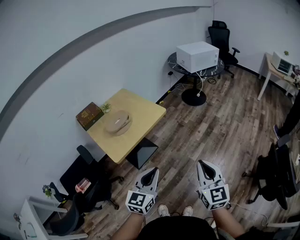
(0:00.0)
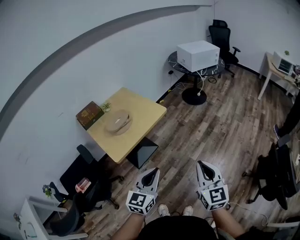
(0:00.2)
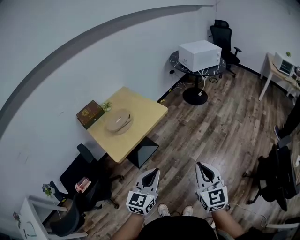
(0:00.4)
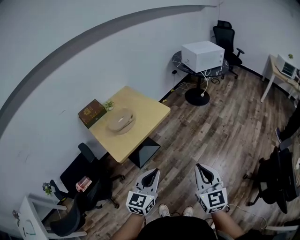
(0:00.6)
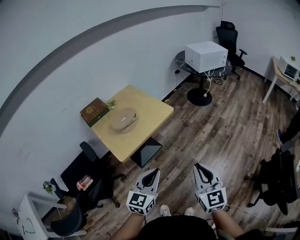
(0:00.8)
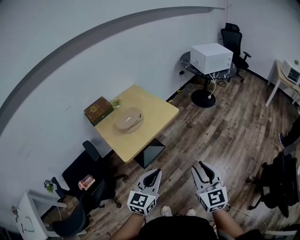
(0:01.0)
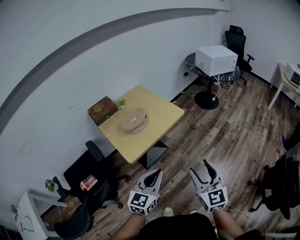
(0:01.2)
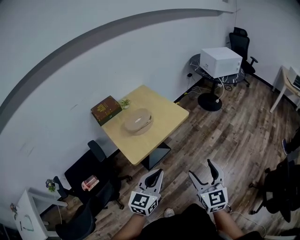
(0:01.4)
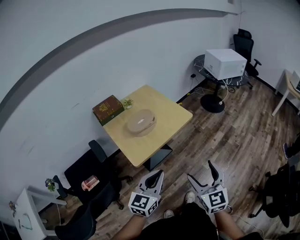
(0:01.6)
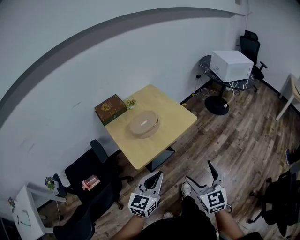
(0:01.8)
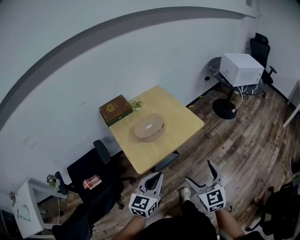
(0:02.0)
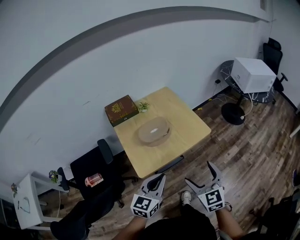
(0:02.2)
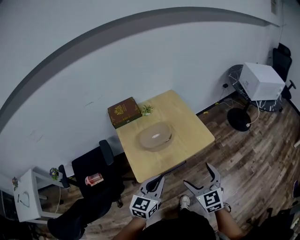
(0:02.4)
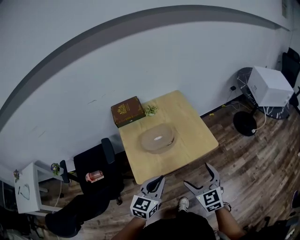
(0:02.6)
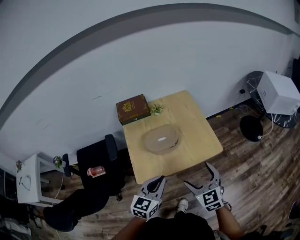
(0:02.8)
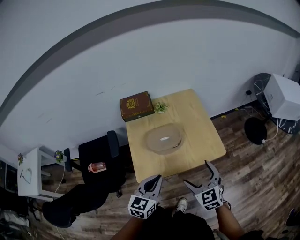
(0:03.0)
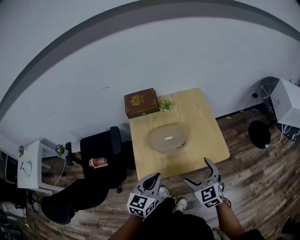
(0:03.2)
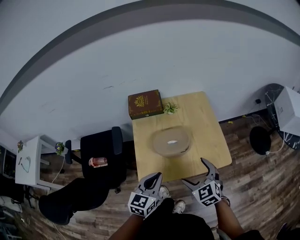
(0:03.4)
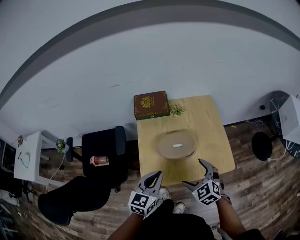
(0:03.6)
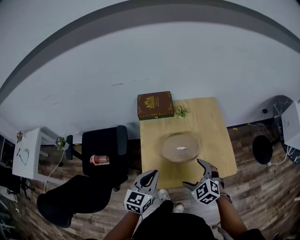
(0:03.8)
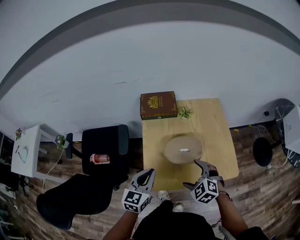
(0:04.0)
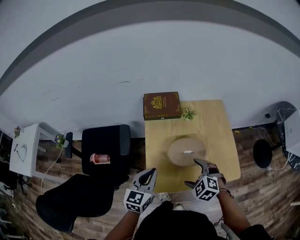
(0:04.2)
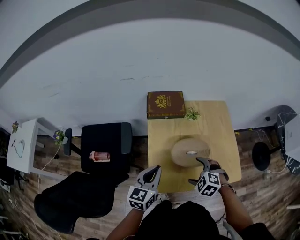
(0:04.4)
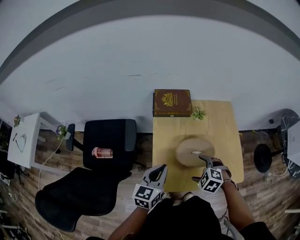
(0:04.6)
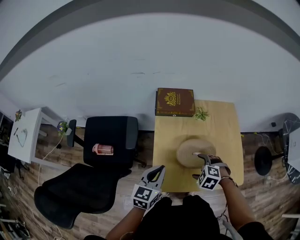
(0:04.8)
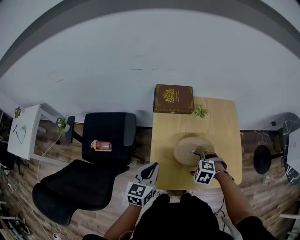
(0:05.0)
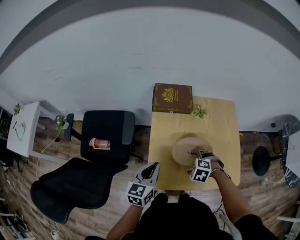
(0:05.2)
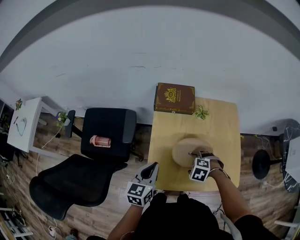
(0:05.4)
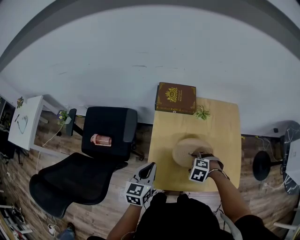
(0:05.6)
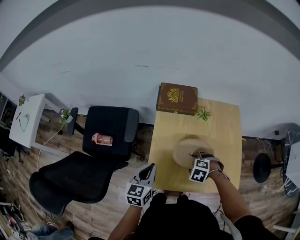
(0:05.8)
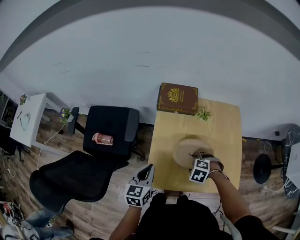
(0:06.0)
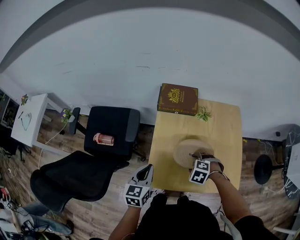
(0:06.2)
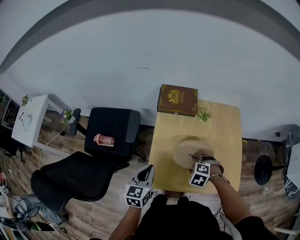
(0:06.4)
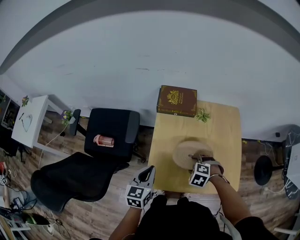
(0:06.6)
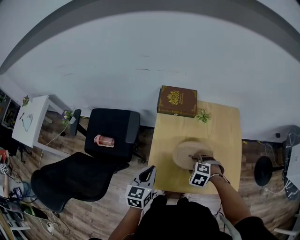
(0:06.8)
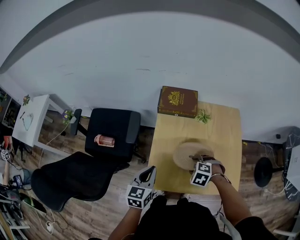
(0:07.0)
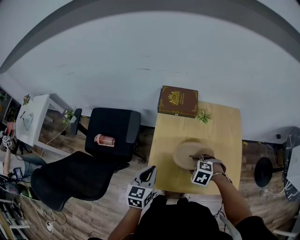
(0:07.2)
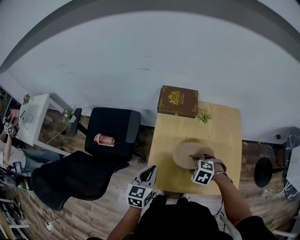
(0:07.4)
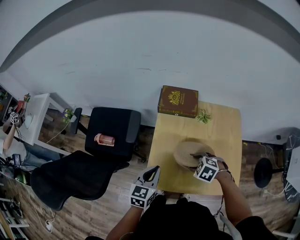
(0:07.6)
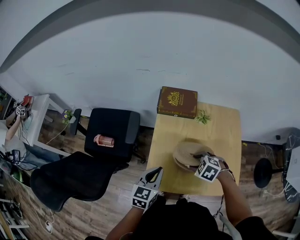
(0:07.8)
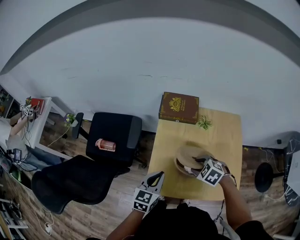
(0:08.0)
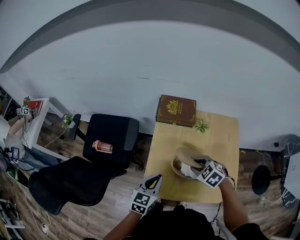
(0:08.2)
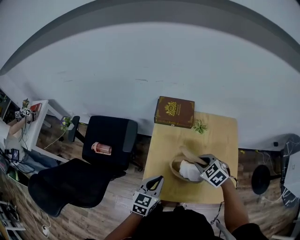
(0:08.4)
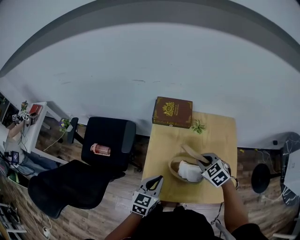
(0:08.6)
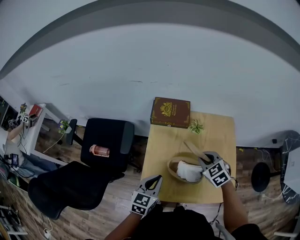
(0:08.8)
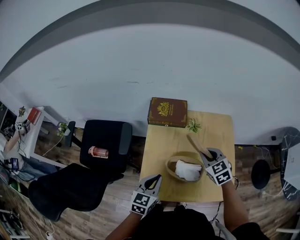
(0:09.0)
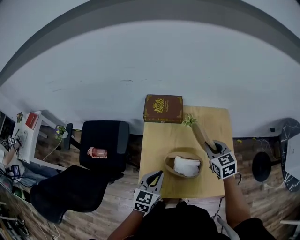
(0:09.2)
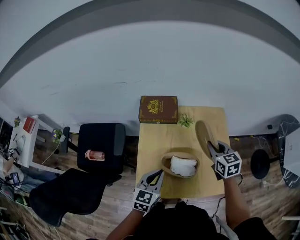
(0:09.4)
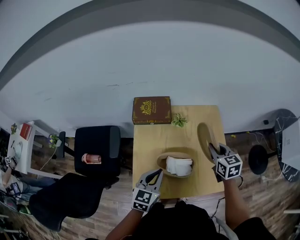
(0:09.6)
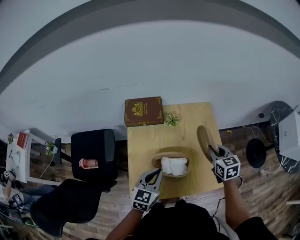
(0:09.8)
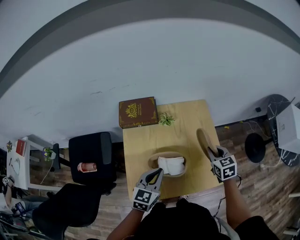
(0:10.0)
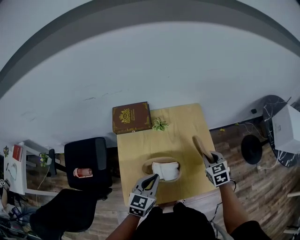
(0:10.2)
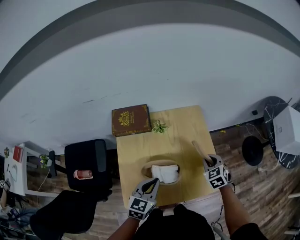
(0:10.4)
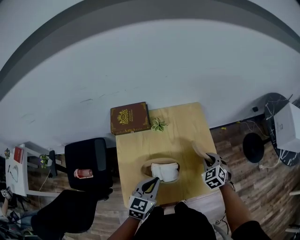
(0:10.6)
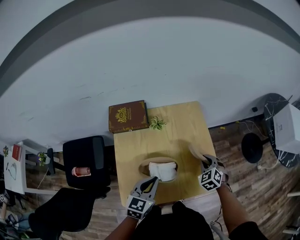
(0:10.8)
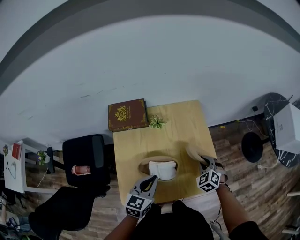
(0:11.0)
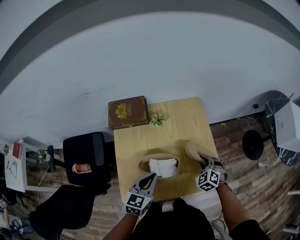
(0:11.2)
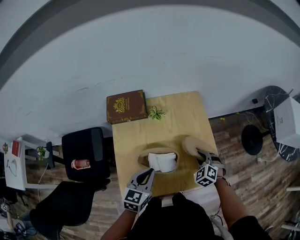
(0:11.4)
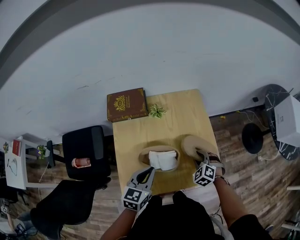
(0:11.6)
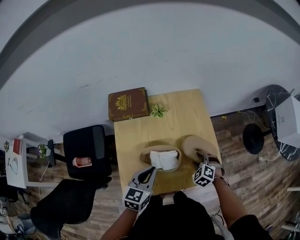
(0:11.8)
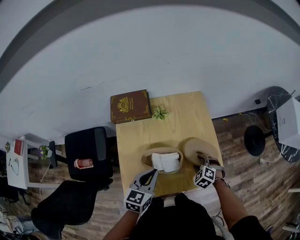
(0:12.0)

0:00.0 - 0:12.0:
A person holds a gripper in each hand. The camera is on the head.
0:00.0 - 0:01.6: The grippers both shift to the left by about 15 cm. The right gripper opens.
0:01.6 - 0:03.0: The right gripper shifts by about 30 cm, and rotates some 40 degrees. Meanwhile the left gripper shifts by roughly 20 cm, and changes its angle by approximately 30 degrees.
0:03.0 - 0:04.4: The left gripper goes some 20 cm forward and to the left. Meanwhile the right gripper shifts about 20 cm forward, to the left and downward, and tilts its fingers roughly 40 degrees downward.
0:04.4 - 0:06.0: The right gripper heads downward, covering some 5 cm, and turns by about 20 degrees; the left gripper changes place by some 5 cm.
0:06.0 - 0:07.6: The grippers make only small movements.
0:07.6 - 0:09.0: The right gripper moves to the right, upward and forward, some 15 cm, angles its fingers upward, by approximately 30 degrees, and closes up.
0:09.0 - 0:10.4: The right gripper heads to the right, covering about 20 cm, and turns by roughly 20 degrees. The left gripper goes approximately 10 cm to the right.
0:10.4 - 0:12.0: The right gripper is displaced downward and backward by approximately 15 cm, and swivels approximately 30 degrees.

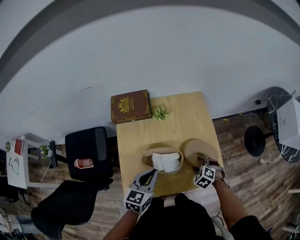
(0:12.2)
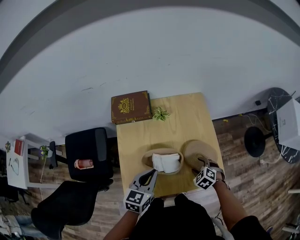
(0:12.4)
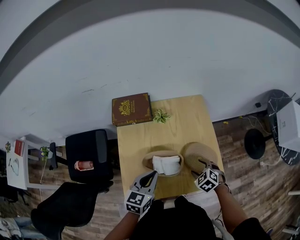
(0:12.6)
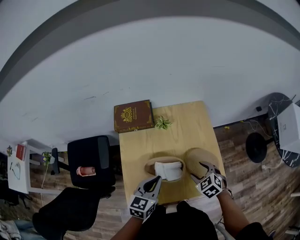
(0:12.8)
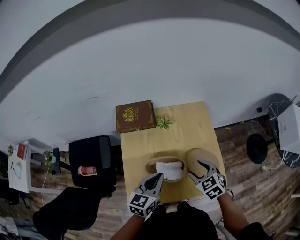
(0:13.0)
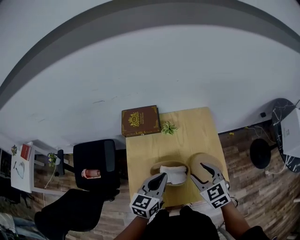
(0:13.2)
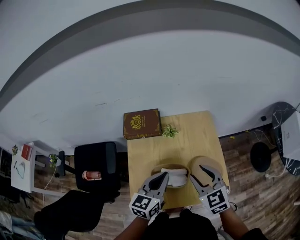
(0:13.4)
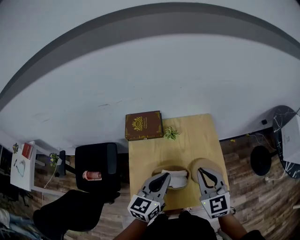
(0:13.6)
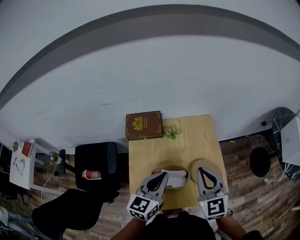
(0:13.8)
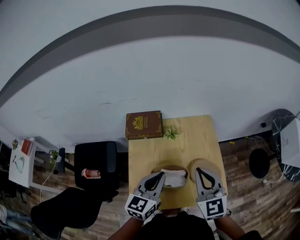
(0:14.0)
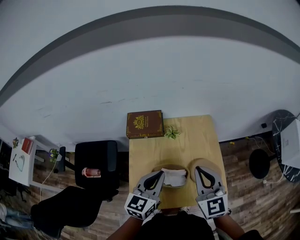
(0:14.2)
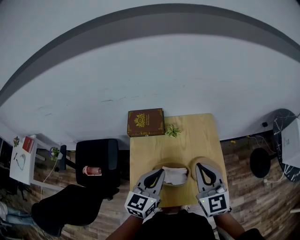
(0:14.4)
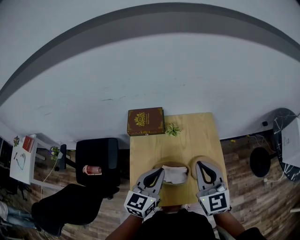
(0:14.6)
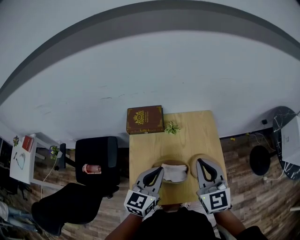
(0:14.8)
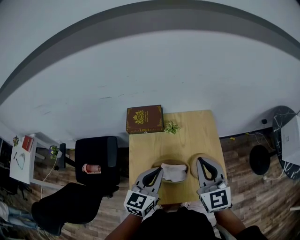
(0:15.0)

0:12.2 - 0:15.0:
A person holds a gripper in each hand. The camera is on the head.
0:12.2 - 0:13.6: The right gripper goes roughly 30 cm upward, points its fingers roughly 50 degrees further upward, and closes, while the left gripper shifts approximately 10 cm upward.
0:13.6 - 0:15.0: The right gripper ends up approximately 5 cm from where it was.

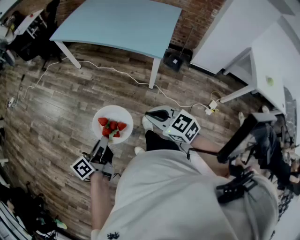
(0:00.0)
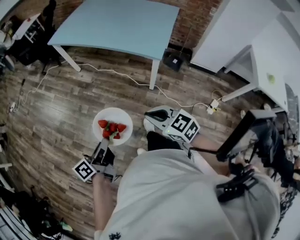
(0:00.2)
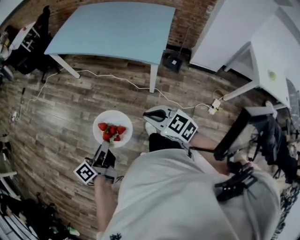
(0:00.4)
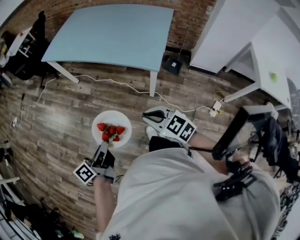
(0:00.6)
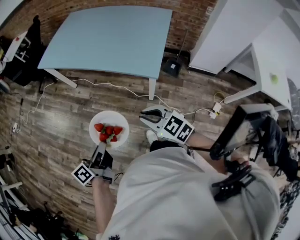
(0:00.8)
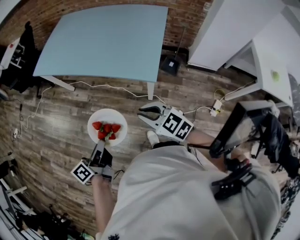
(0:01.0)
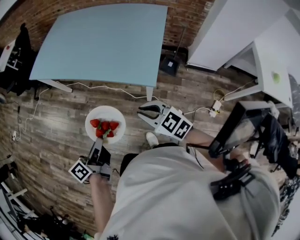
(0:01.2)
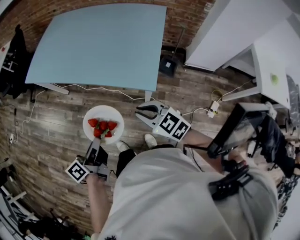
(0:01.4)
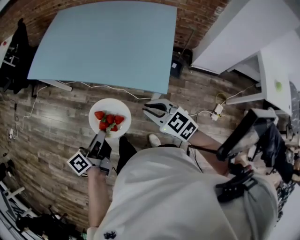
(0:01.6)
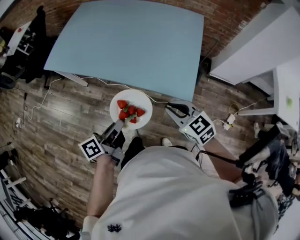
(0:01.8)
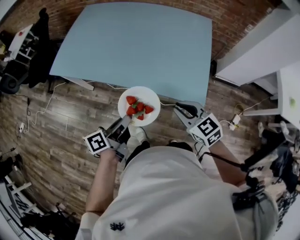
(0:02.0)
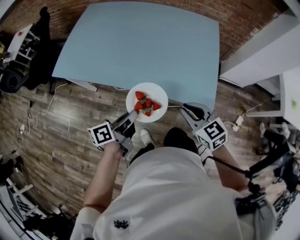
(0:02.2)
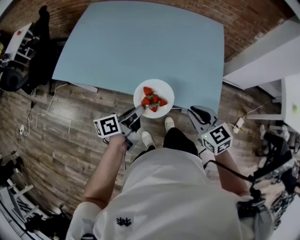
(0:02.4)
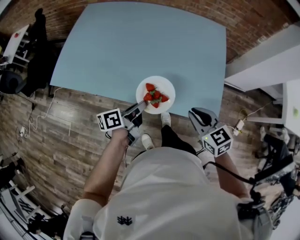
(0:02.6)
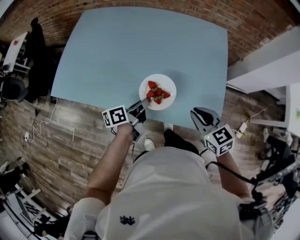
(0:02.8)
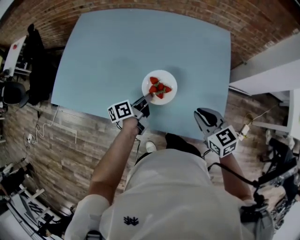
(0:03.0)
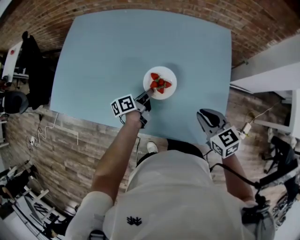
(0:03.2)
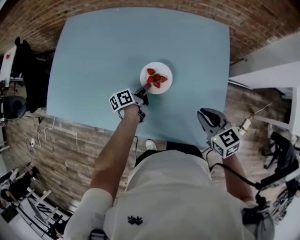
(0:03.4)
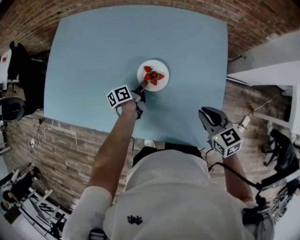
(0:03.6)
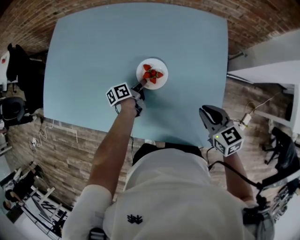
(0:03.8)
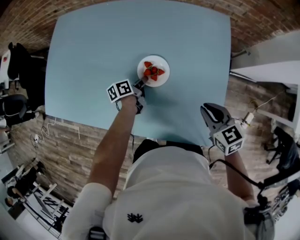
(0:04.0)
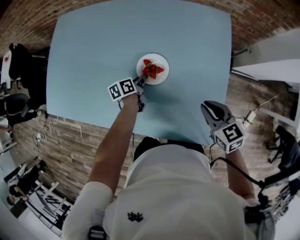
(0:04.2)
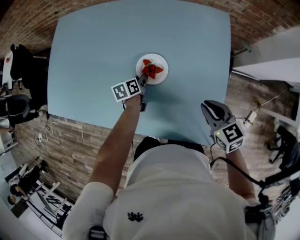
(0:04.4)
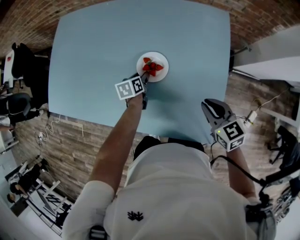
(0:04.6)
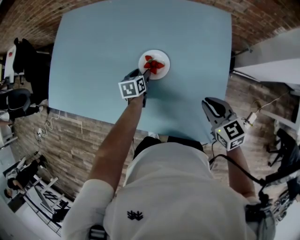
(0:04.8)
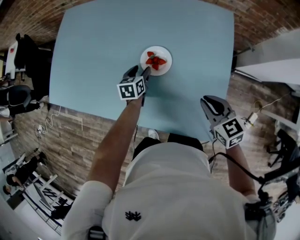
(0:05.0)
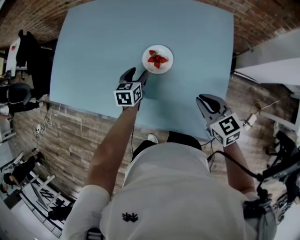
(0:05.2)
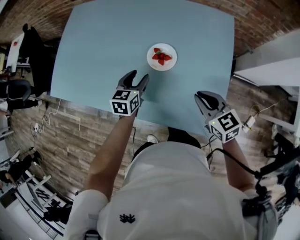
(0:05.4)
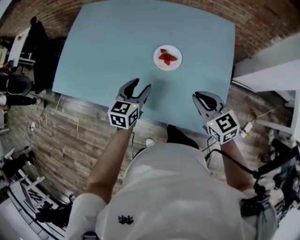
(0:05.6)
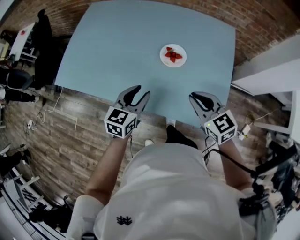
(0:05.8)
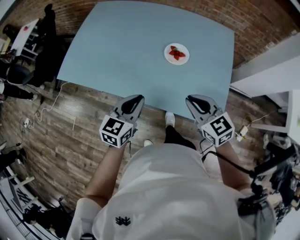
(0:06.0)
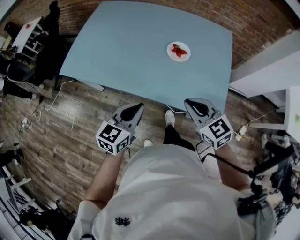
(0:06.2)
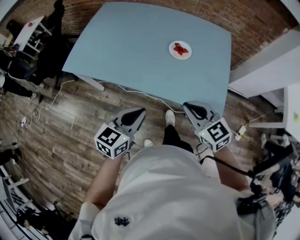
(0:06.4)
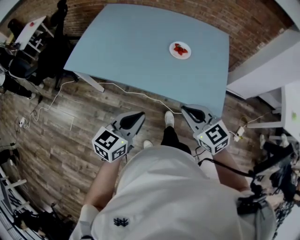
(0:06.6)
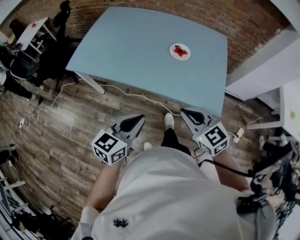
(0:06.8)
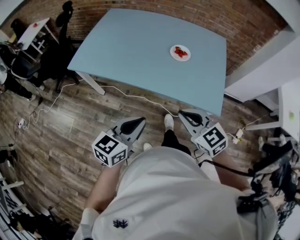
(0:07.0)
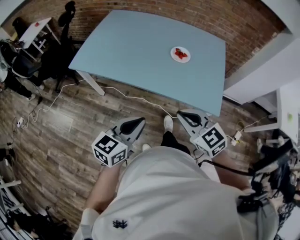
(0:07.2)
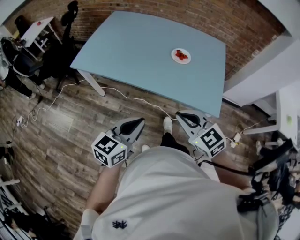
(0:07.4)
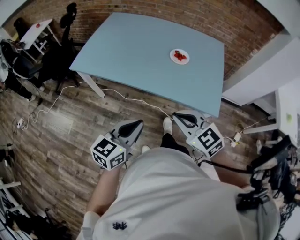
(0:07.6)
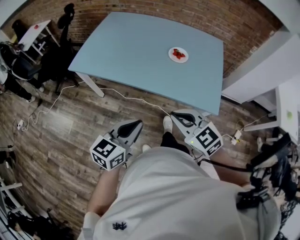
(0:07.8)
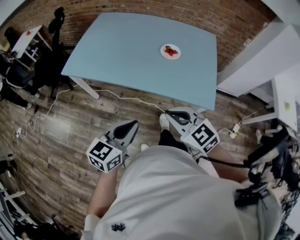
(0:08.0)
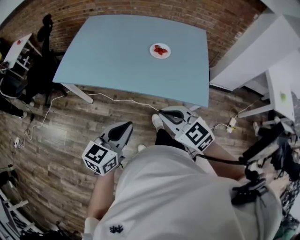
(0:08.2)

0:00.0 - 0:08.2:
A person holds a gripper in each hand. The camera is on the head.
0:00.0 - 0:01.6: Both grippers travel together forward, some 35 cm.
0:01.6 - 0:03.2: The right gripper is displaced forward by approximately 35 cm, and rotates some 30 degrees; the left gripper travels forward by approximately 50 cm, and rotates about 20 degrees.
0:03.2 - 0:05.0: The left gripper twists about 40 degrees clockwise, seen from behind, and opens; the right gripper moves to the right, about 5 cm.
0:05.0 - 0:06.6: The left gripper shifts roughly 50 cm backward, upward and to the left, changes its angle by about 30 degrees, and closes its fingers. The right gripper moves to the left and backward, about 35 cm, and rotates roughly 20 degrees.
0:06.6 - 0:08.2: The grippers both shift backward by some 5 cm.
